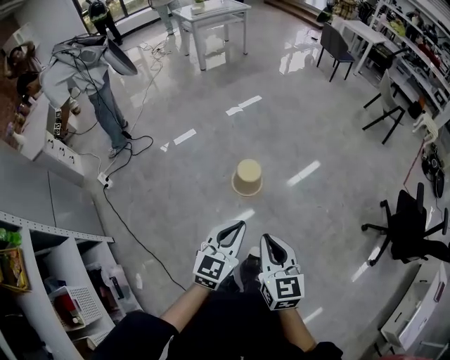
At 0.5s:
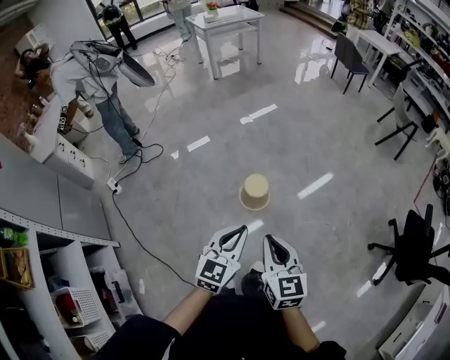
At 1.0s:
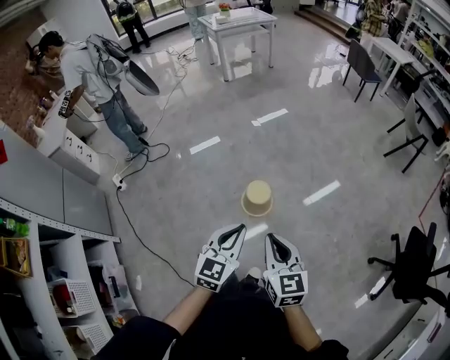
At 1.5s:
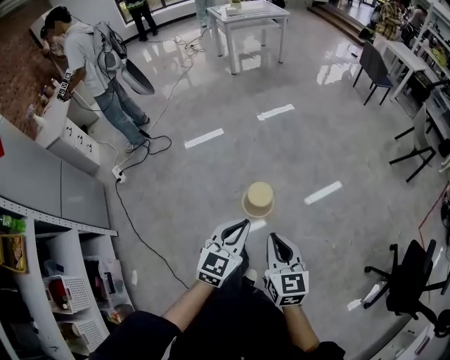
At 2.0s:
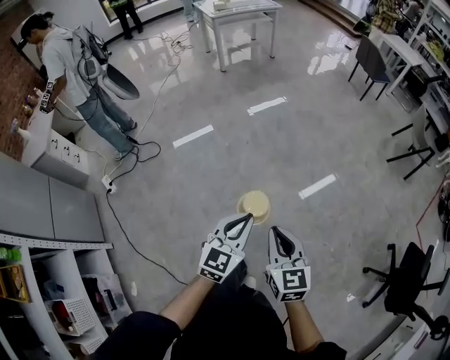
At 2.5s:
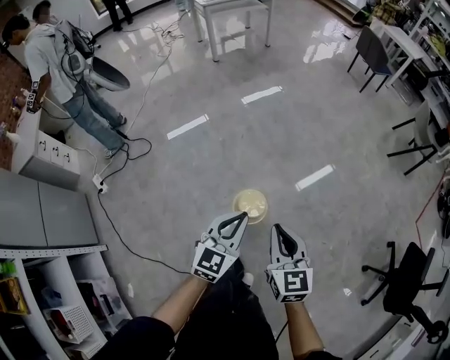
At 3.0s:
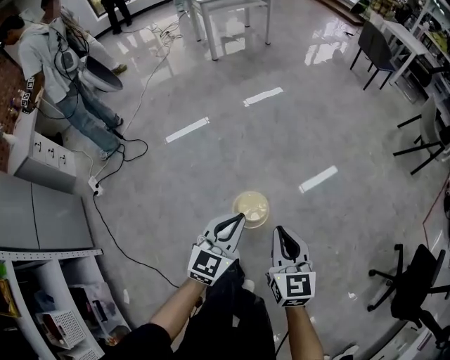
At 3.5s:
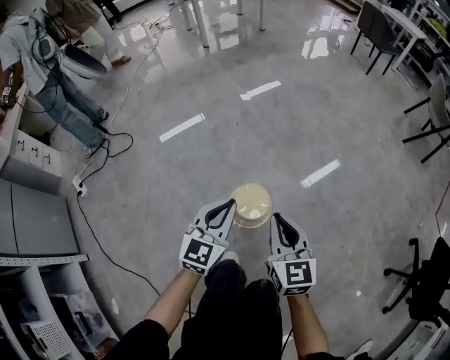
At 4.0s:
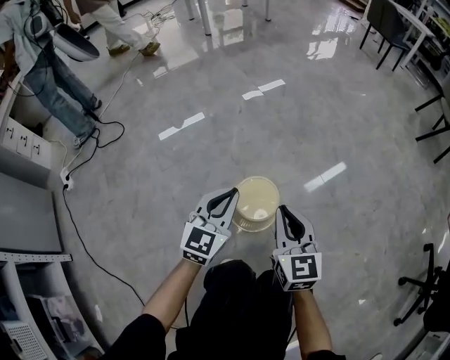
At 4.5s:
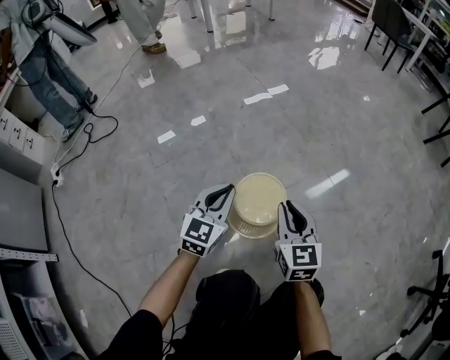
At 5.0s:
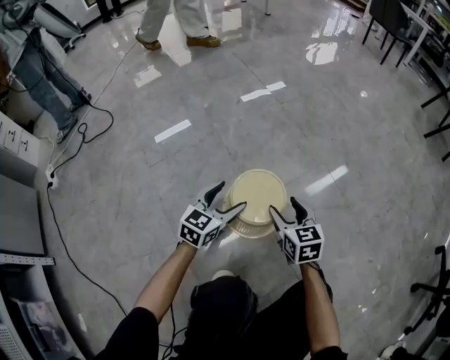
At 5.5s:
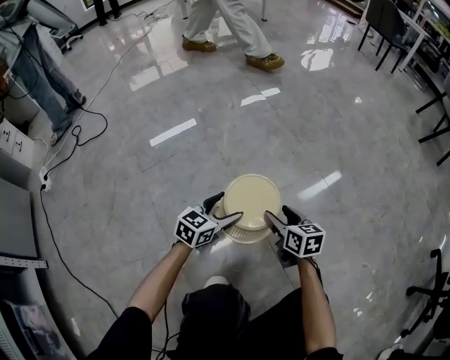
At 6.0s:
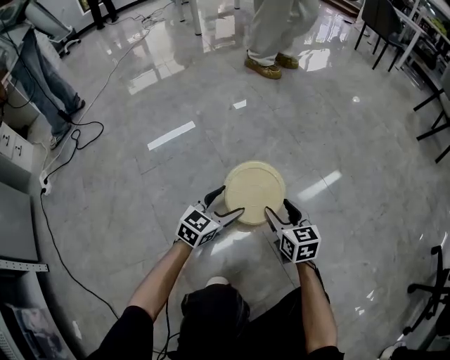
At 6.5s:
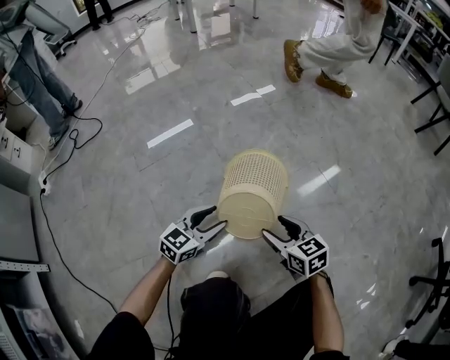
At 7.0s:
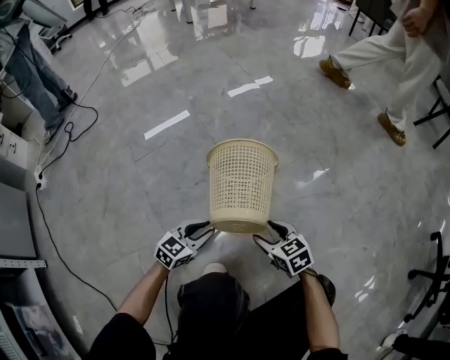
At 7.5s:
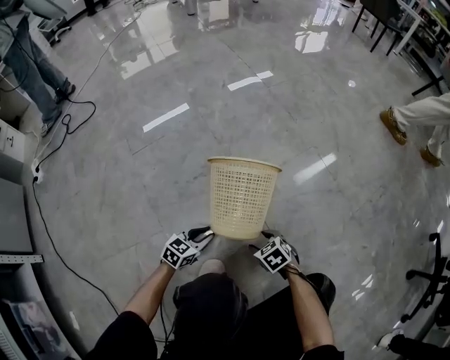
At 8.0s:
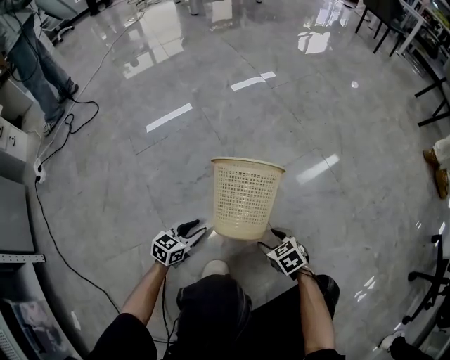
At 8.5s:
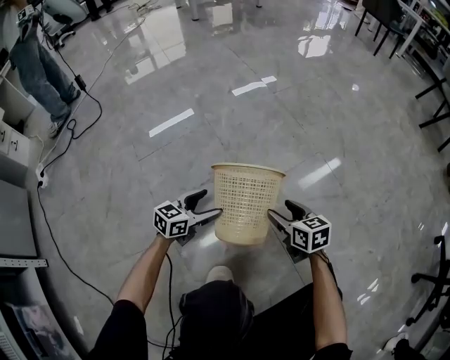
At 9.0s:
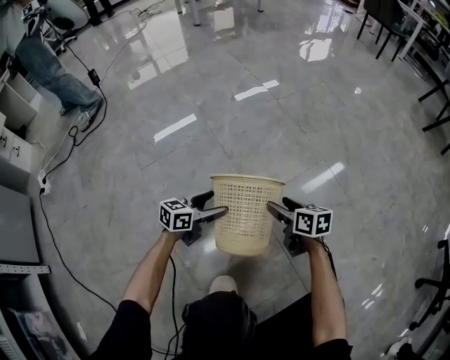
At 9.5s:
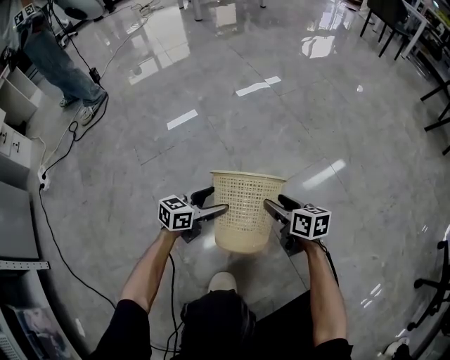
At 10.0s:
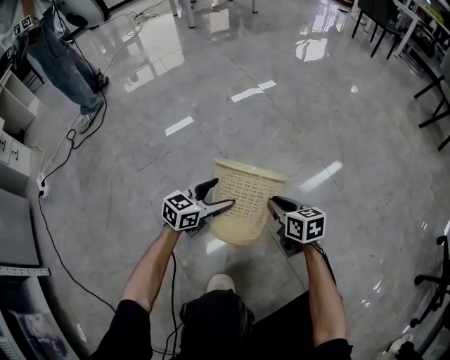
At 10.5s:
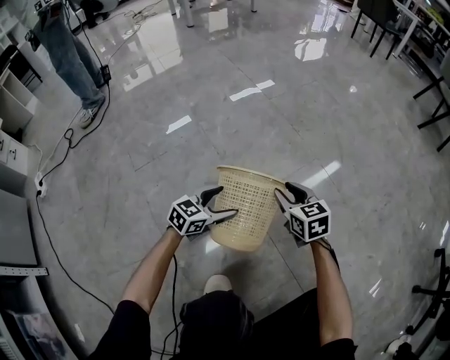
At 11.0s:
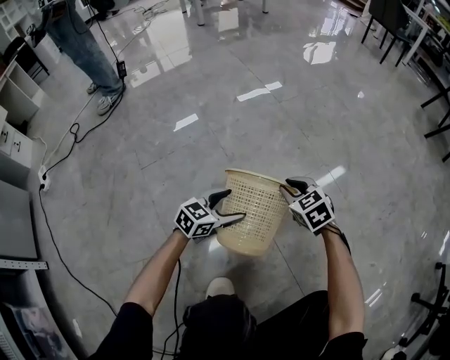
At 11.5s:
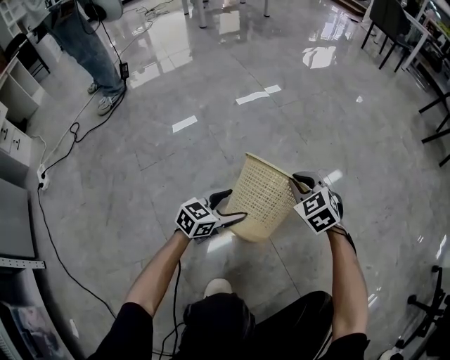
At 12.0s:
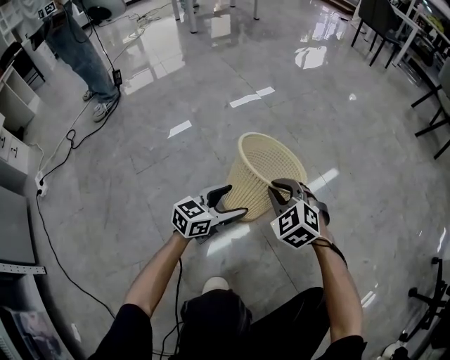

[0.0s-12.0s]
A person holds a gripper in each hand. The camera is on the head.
0.0s to 2.0s: The two grippers go about 30 cm forward.
2.0s to 4.0s: The two grippers go roughly 50 cm downward.
4.0s to 6.0s: The grippers both shift downward by roughly 25 cm. The left gripper opens its fingers, while the right gripper opens its fingers.
6.0s to 8.0s: The left gripper travels downward, backward and to the left by about 25 cm, and closes up. The right gripper moves backward and downward, roughly 20 cm, and angles its fingers downward, by some 30 degrees.
8.0s to 10.0s: Both grippers move forward and upward, about 20 cm. The right gripper rotates about 40 degrees, and closes; the left gripper opens up.
10.0s to 12.0s: The right gripper travels upward by approximately 10 cm, and twists roughly 60 degrees counterclockwise, seen from behind. Meanwhile the left gripper travels to the right by some 5 cm.

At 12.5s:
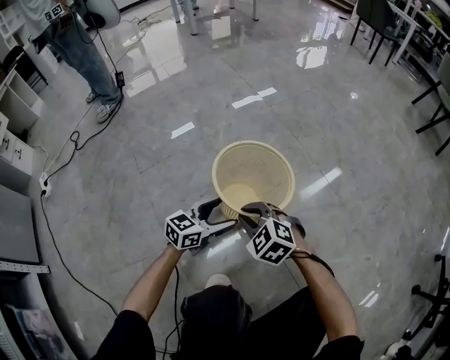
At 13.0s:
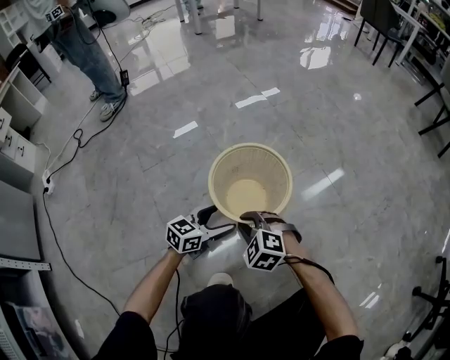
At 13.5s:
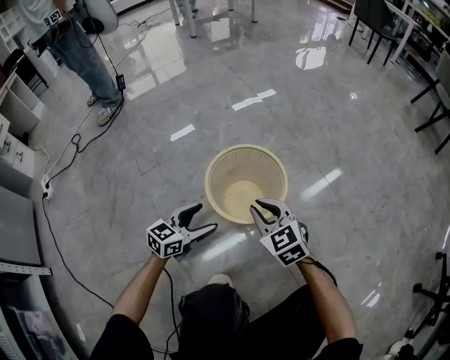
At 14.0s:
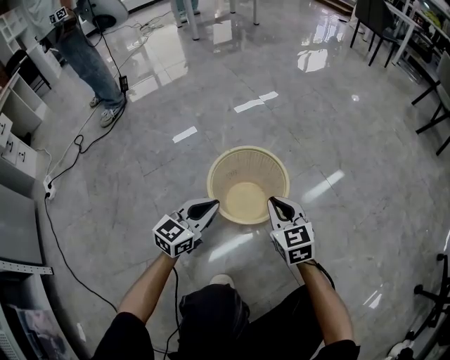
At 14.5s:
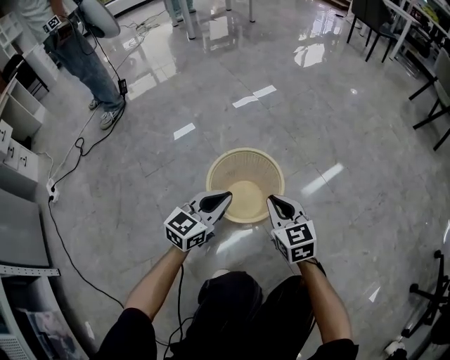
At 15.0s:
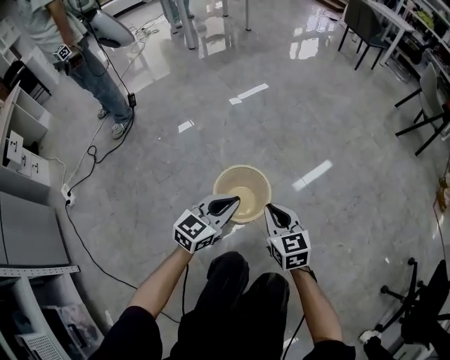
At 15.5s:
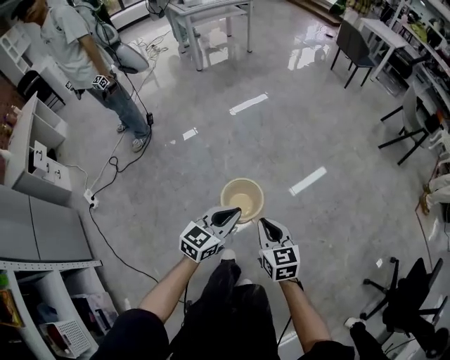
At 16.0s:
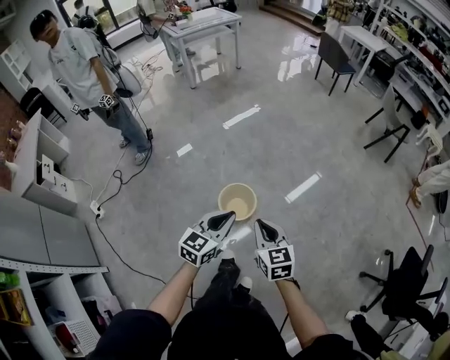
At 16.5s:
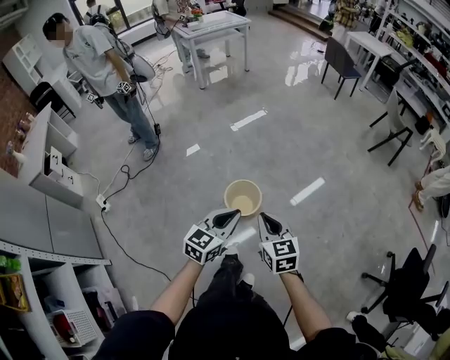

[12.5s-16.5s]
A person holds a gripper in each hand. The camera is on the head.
12.5s to 14.5s: The right gripper is displaced to the right and upward by approximately 10 cm, and turns by about 40 degrees. The left gripper moves upward, roughly 15 cm, and closes up.
14.5s to 16.5s: The grippers both shift upward by approximately 60 cm.

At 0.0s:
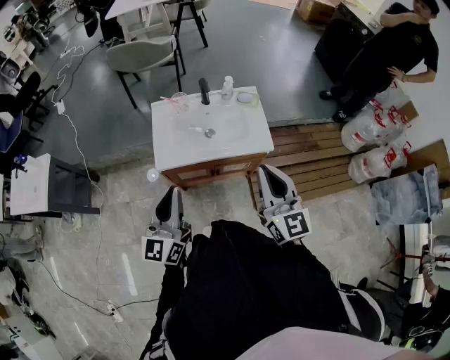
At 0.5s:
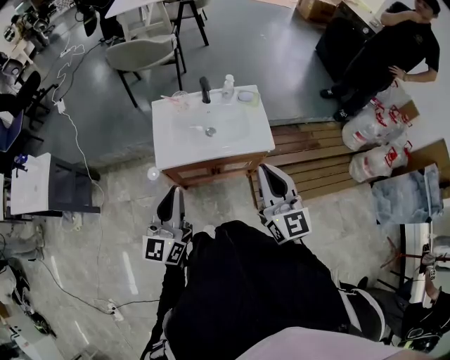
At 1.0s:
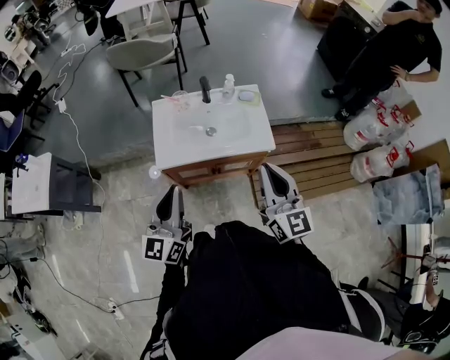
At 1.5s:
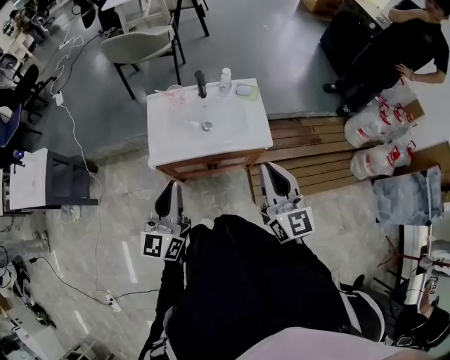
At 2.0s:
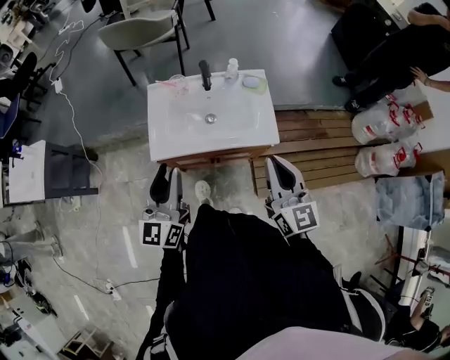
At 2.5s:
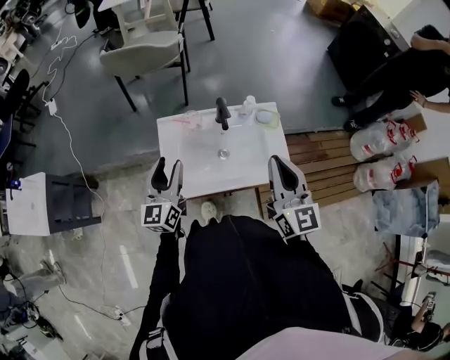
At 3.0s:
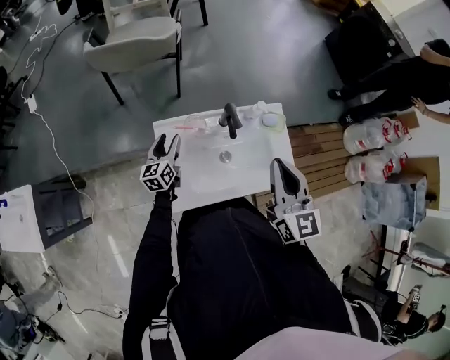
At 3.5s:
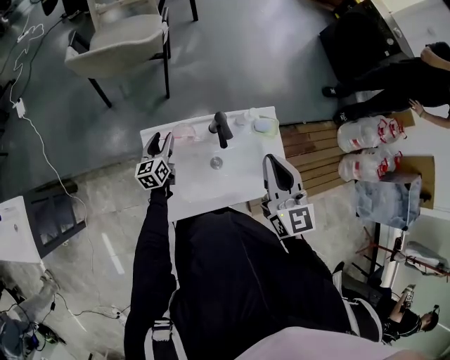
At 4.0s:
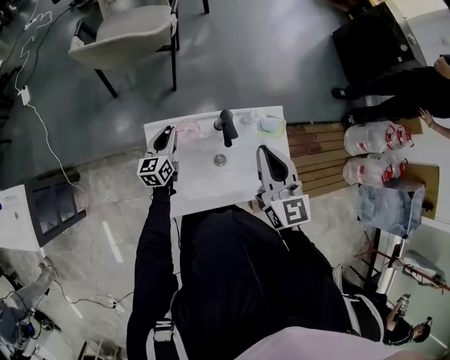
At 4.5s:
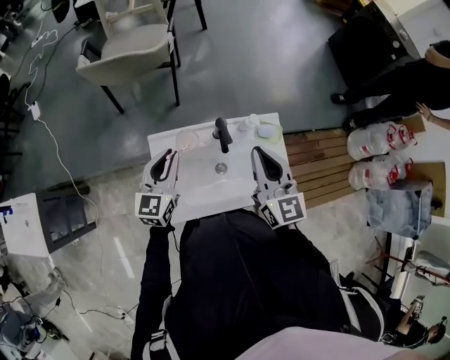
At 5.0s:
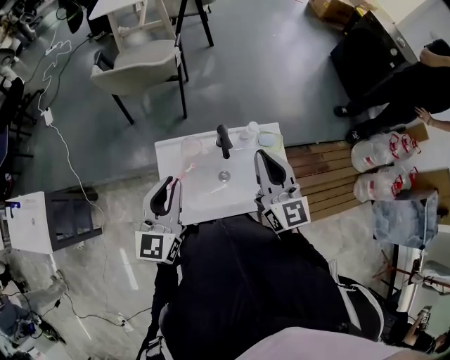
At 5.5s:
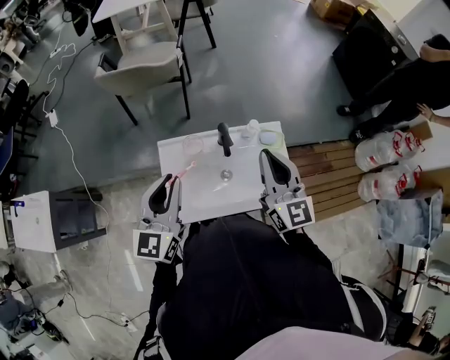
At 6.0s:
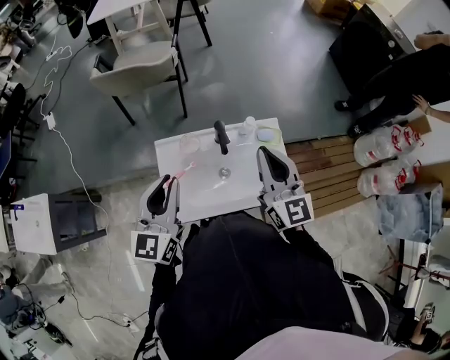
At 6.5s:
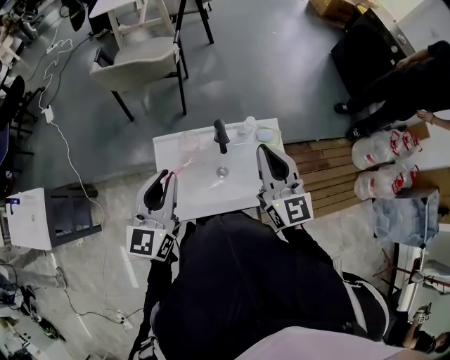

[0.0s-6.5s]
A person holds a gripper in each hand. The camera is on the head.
0.0s to 2.0s: Both grippers travel together forward, some 10 cm. The left gripper opens.
2.0s to 4.5s: The right gripper moves forward and to the left, approximately 35 cm. The left gripper shifts roughly 35 cm forward, changes its angle by approximately 20 degrees, and opens and closes again.
4.5s to 6.5s: The left gripper goes about 15 cm upward and backward, while the right gripper shifts approximately 5 cm upward.

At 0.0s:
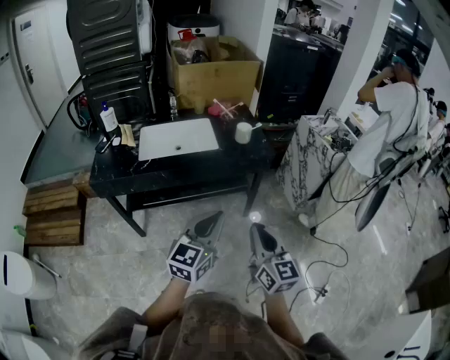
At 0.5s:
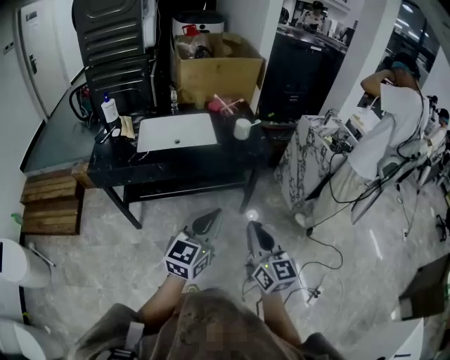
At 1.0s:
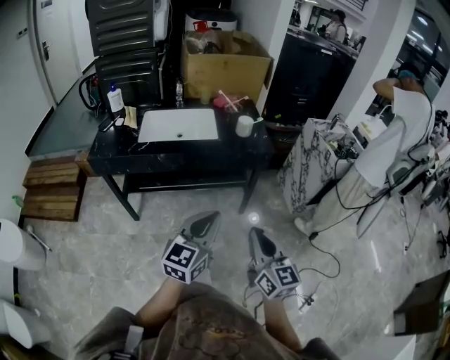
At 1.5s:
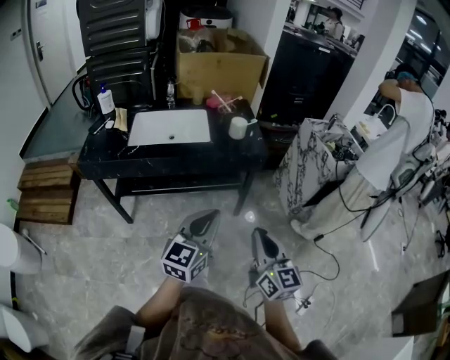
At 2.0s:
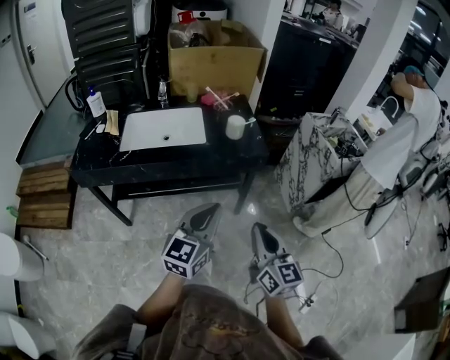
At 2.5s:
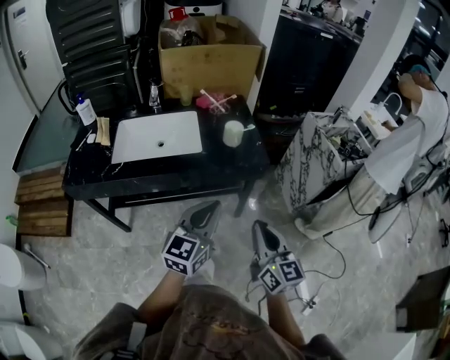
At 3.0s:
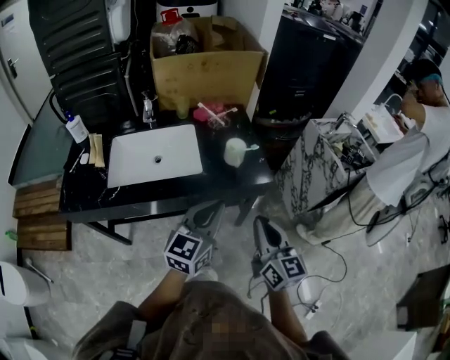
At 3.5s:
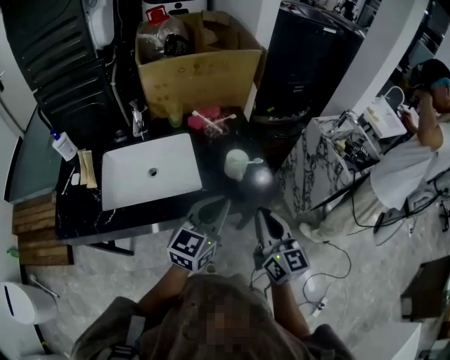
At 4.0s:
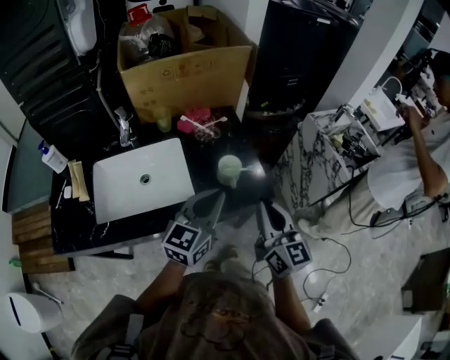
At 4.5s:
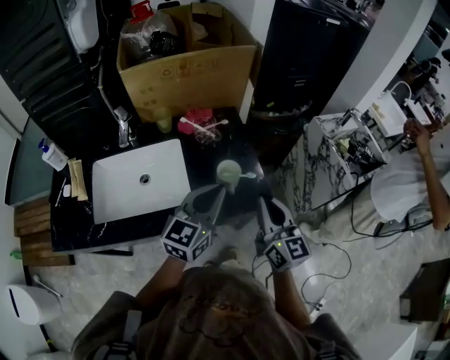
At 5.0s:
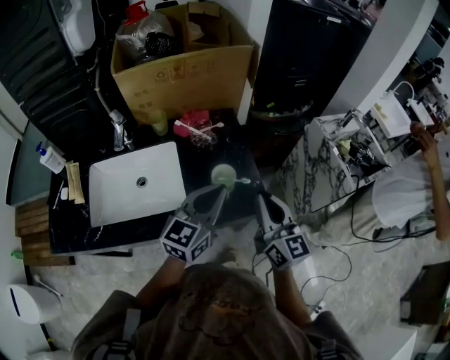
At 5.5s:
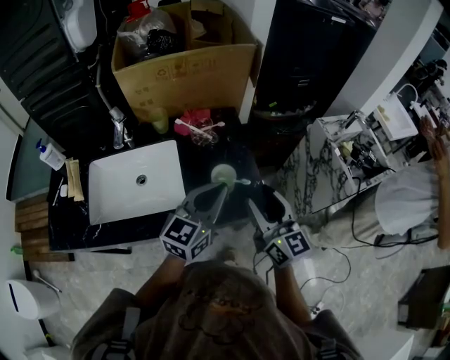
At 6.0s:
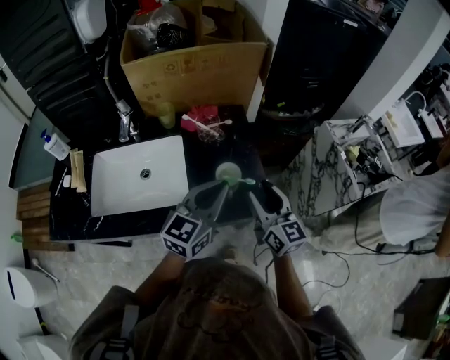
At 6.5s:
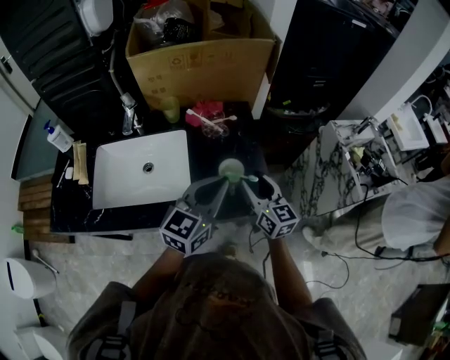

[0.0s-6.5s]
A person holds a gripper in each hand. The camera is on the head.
0.0s to 2.0s: The right gripper moves to the right and forward, roughly 10 cm, while the left gripper shifts some 10 cm forward and to the right.
2.0s to 4.5s: The grippers both shift forward by approximately 35 cm.
4.5s to 6.5s: The right gripper travels forward and downward by approximately 15 cm, and opens its fingers.
